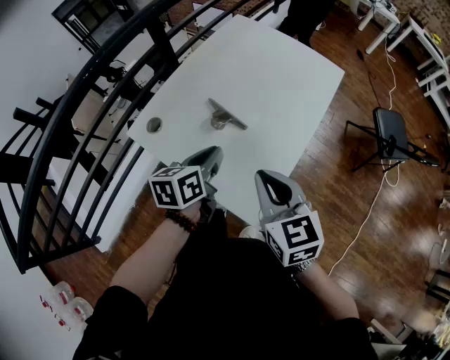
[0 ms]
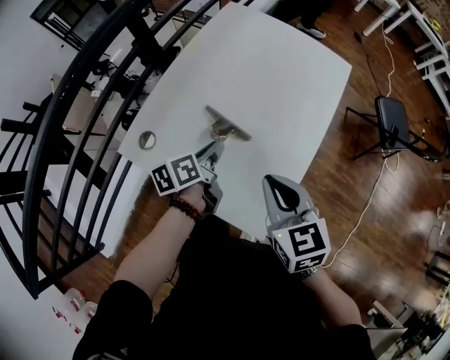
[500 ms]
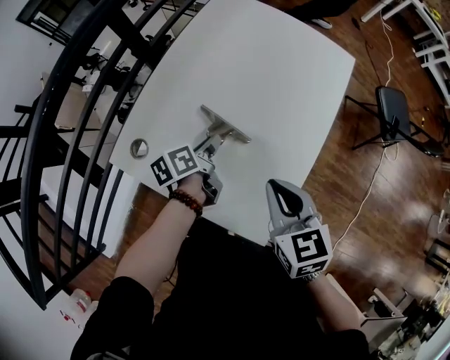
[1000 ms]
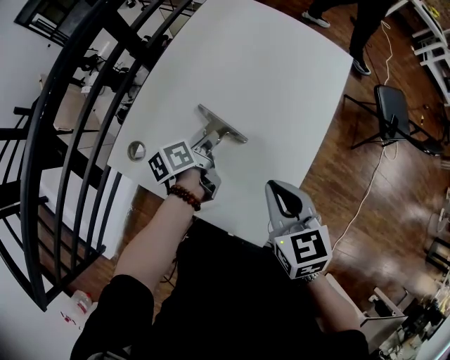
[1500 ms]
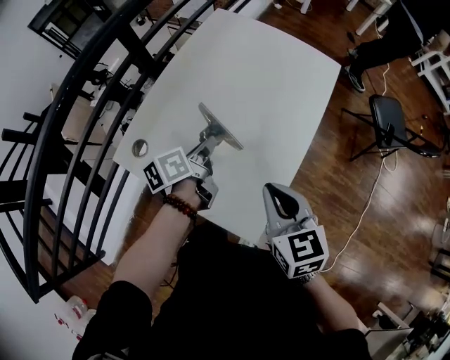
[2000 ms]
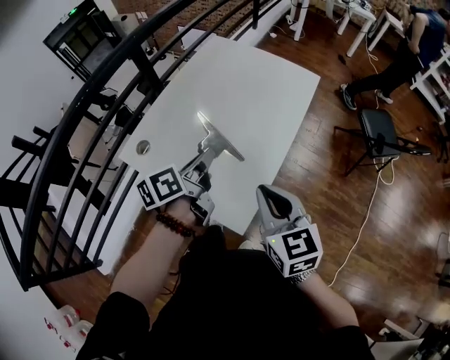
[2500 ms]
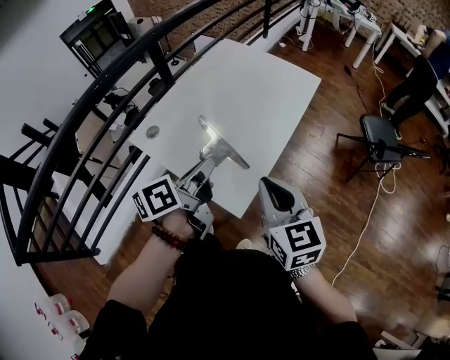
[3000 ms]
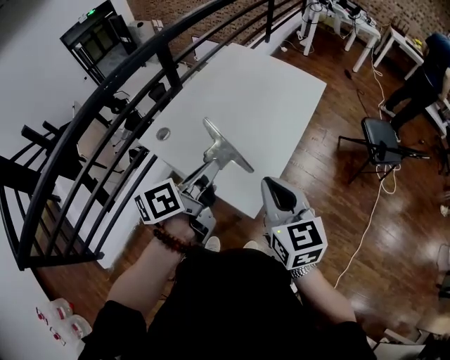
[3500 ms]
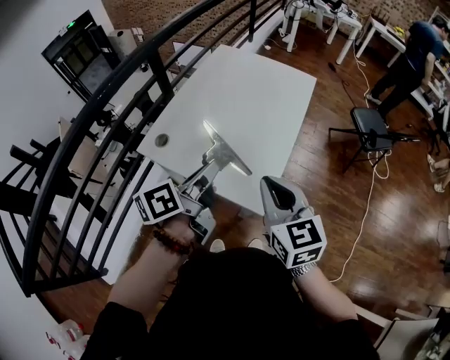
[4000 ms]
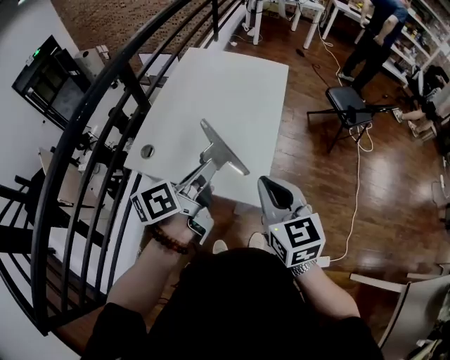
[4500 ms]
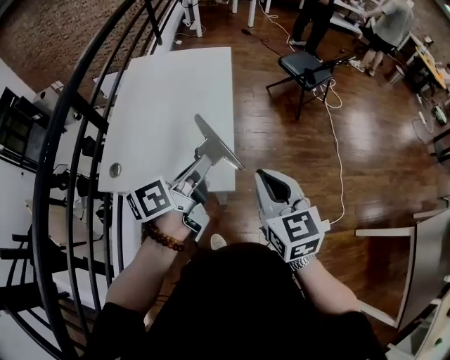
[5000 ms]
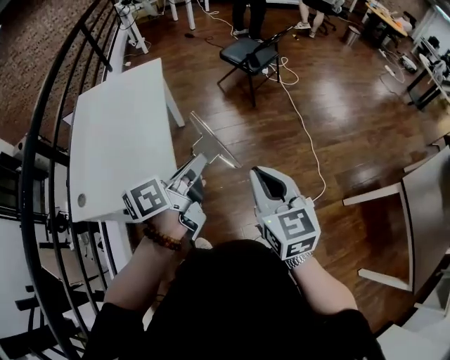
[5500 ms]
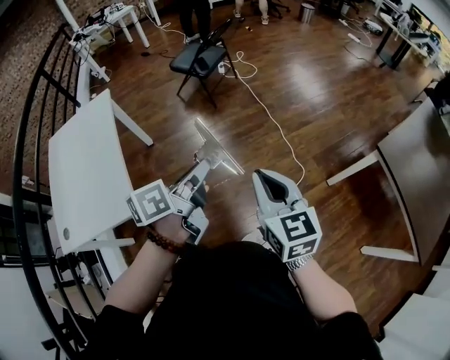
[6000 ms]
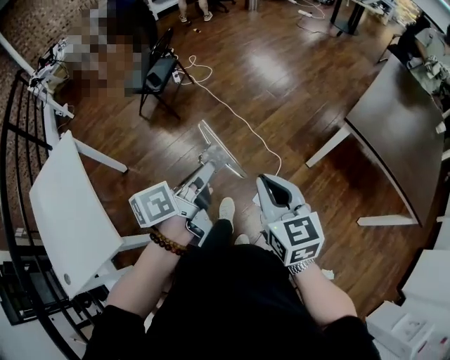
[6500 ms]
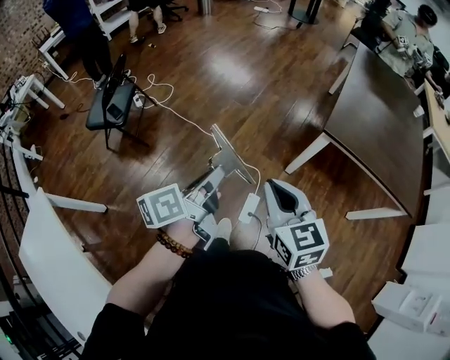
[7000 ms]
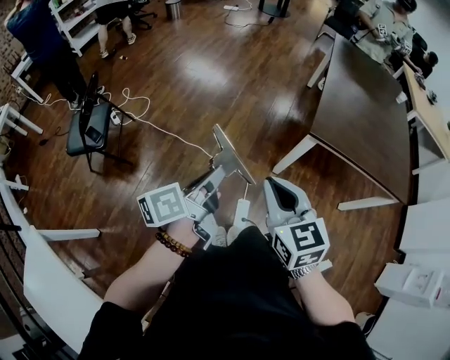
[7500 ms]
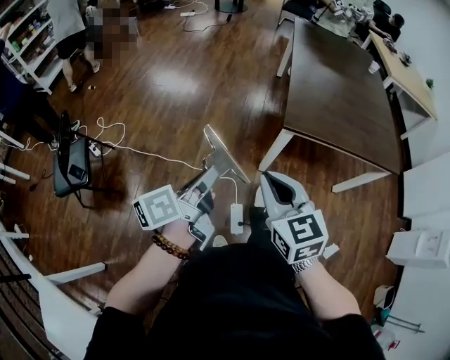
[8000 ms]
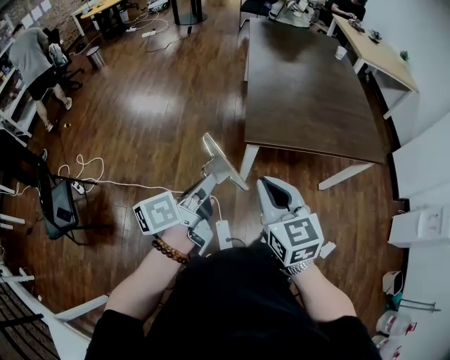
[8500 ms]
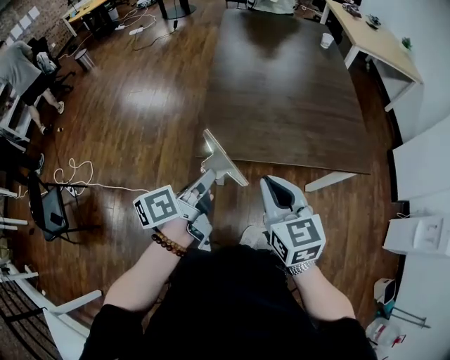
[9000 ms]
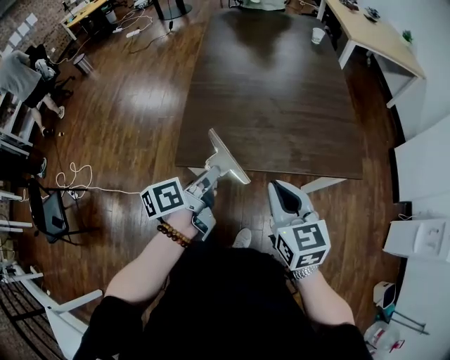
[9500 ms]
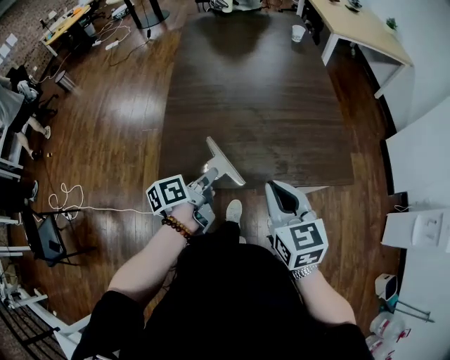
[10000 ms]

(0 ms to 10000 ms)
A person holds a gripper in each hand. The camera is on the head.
0 ms - 2000 ms: The right gripper moves forward, approximately 5 cm. Meanwhile the left gripper shifts some 10 cm forward, and changes its angle by some 30 degrees.
2000 ms - 4000 ms: The left gripper heads backward and upward, covering approximately 25 cm, and swivels roughly 20 degrees; the right gripper moves backward and upward, about 15 cm.
4000 ms - 6000 ms: Both grippers are carried approximately 50 cm. The right gripper rotates roughly 50 degrees; the left gripper changes its angle by about 50 degrees.
6000 ms - 8000 ms: The right gripper changes place by about 35 cm, and swivels about 50 degrees. The left gripper moves roughly 40 cm, and changes its angle by approximately 50 degrees.
8000 ms - 10000 ms: Both grippers are carried to the right and forward, roughly 60 cm. The left gripper changes its angle by approximately 20 degrees; the right gripper swivels approximately 20 degrees.

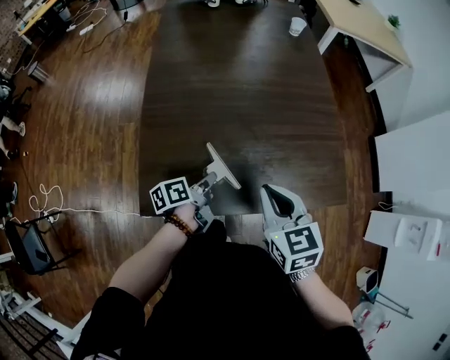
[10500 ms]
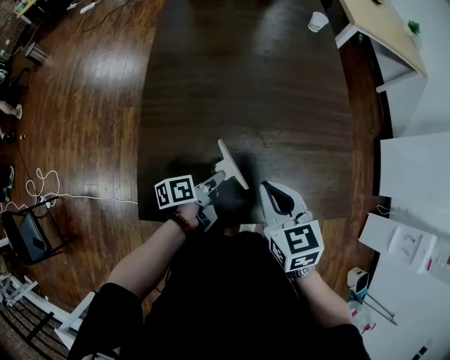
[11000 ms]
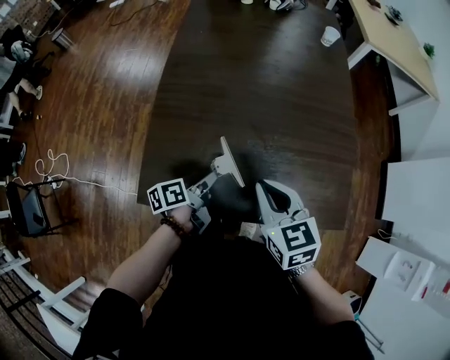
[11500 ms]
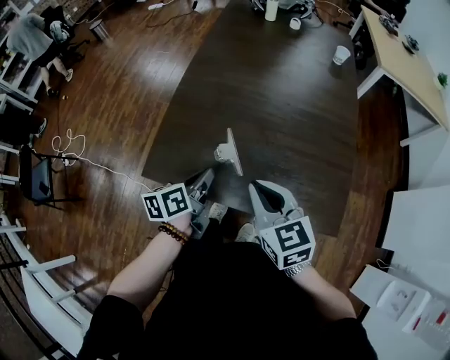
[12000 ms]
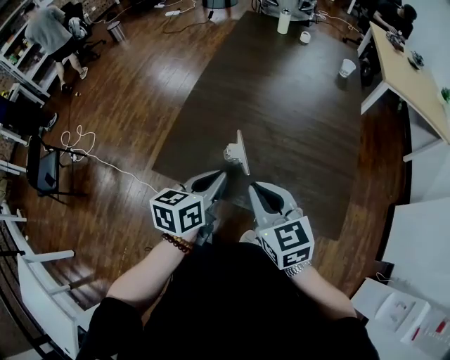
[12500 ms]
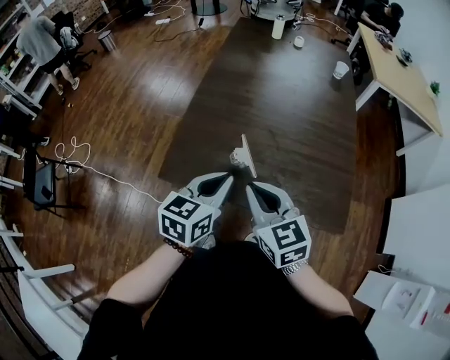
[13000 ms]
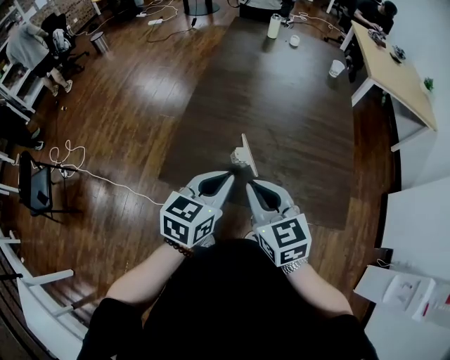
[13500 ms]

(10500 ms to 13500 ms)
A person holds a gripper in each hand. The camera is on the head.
10500 ms - 12000 ms: The right gripper changes its angle by approximately 30 degrees; the left gripper goes about 10 cm upward, and changes its angle by approximately 30 degrees.
12000 ms - 13500 ms: The right gripper travels to the left by about 10 cm. The left gripper is displaced upward and backward by some 10 cm, and twists approximately 40 degrees clockwise, seen from behind.

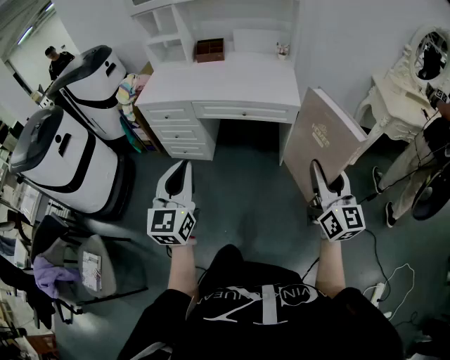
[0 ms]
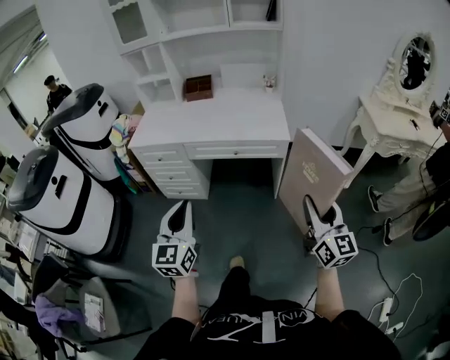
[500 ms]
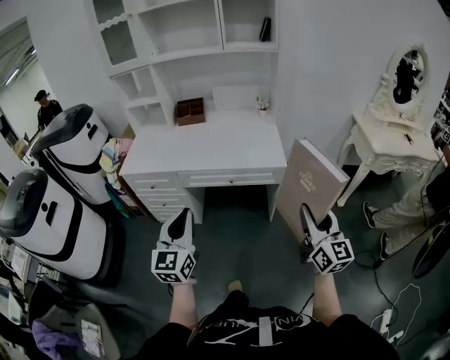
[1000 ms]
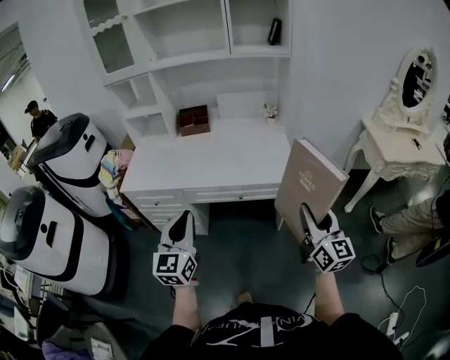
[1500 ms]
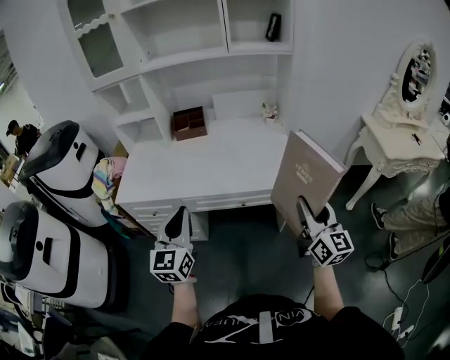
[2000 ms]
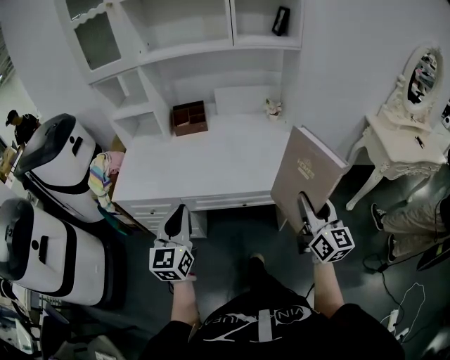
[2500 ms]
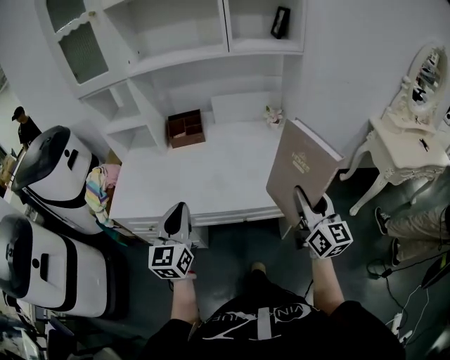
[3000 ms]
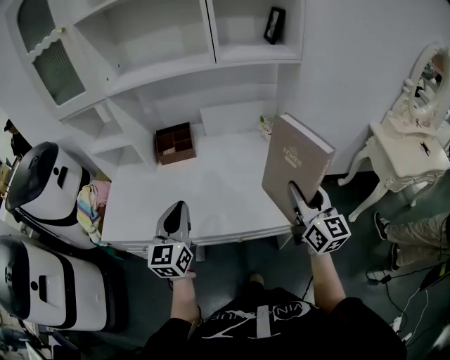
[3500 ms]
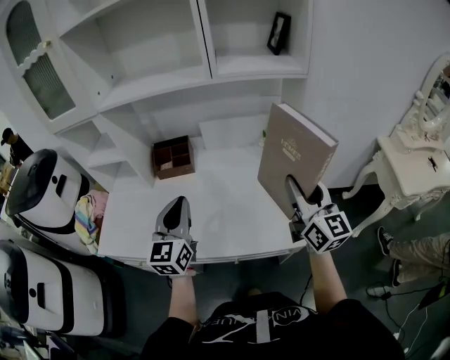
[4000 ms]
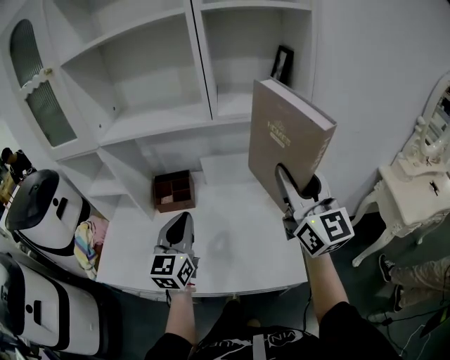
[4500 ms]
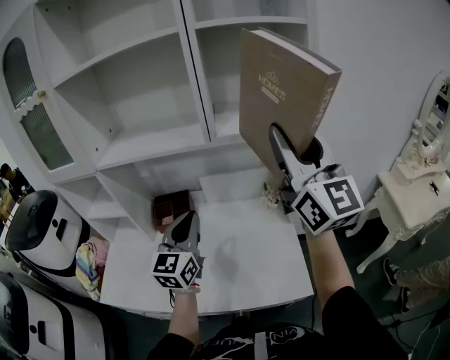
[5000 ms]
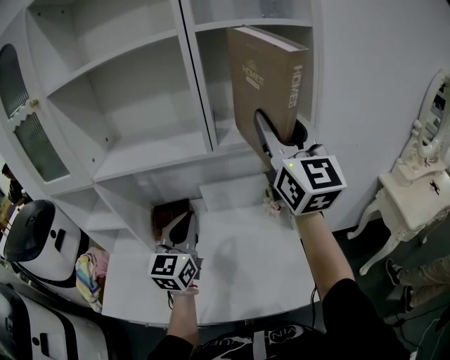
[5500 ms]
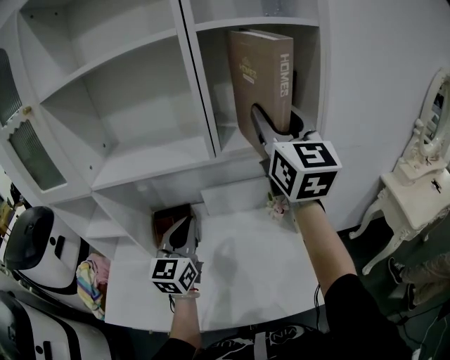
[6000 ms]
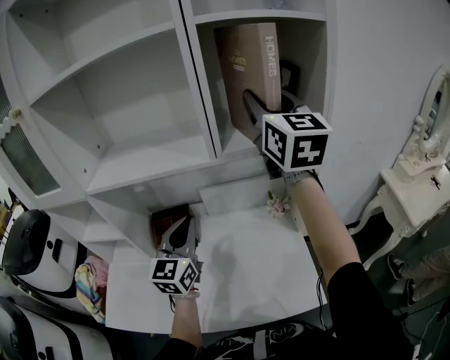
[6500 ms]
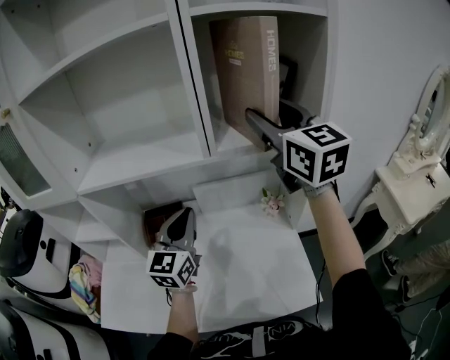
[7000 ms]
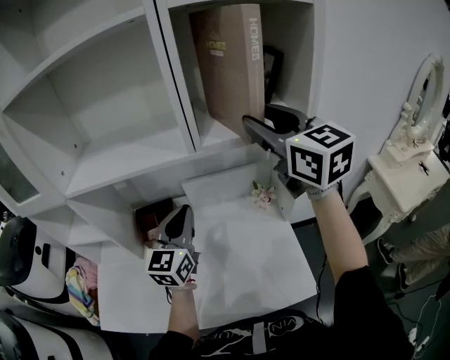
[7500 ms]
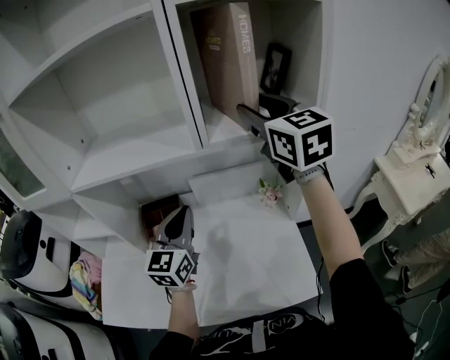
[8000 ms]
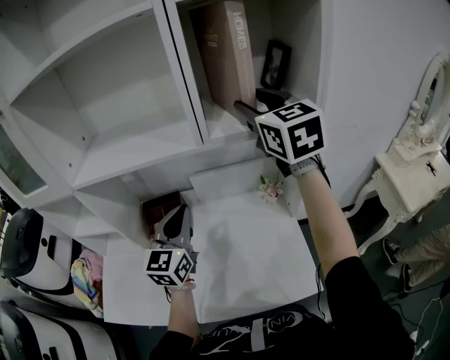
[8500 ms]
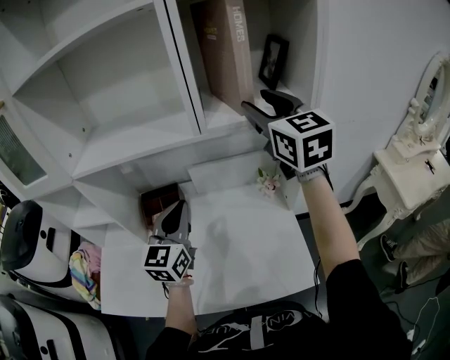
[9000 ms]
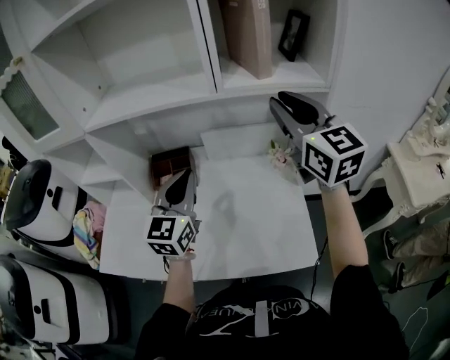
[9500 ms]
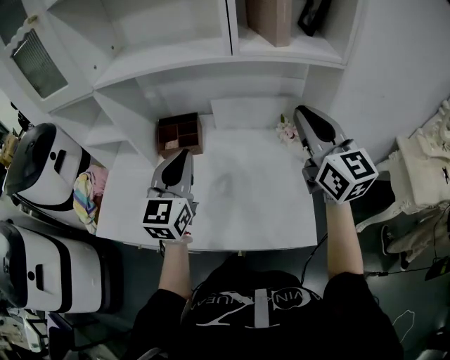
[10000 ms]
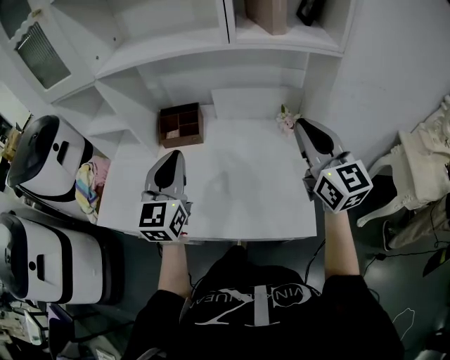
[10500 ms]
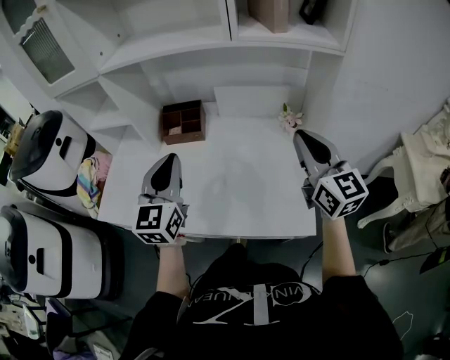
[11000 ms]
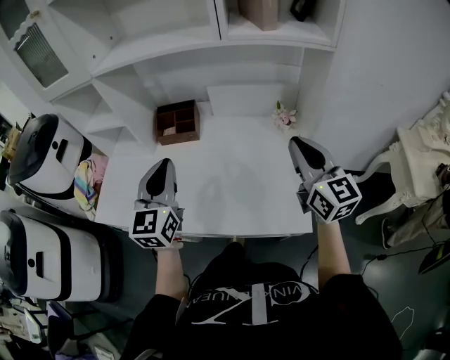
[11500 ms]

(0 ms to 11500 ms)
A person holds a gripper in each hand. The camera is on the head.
0 ms - 2000 ms: The two grippers go approximately 35 cm forward.
2000 ms - 4000 ms: The grippers both shift forward by some 35 cm.
4000 ms - 6000 ms: The left gripper is displaced forward and upward by some 20 cm. Meanwhile the right gripper travels upward and forward by approximately 35 cm, and rotates about 20 degrees.
6000 ms - 7500 ms: The right gripper heads downward, covering some 5 cm, and changes its angle by some 20 degrees; the left gripper moves roughly 5 cm.
7500 ms - 9500 ms: The right gripper heads downward and backward, covering roughly 10 cm, and closes; the left gripper travels backward by roughly 10 cm.
9500 ms - 11500 ms: The right gripper moves downward and backward, about 20 cm. The left gripper shifts some 10 cm backward and to the left.

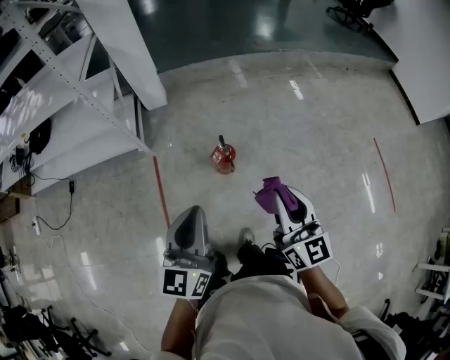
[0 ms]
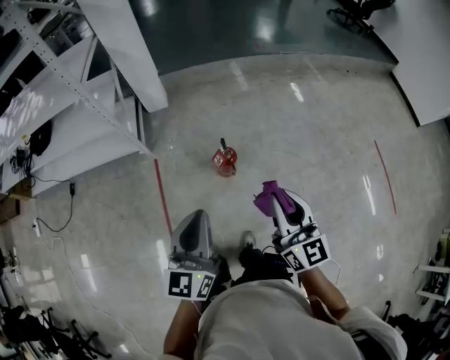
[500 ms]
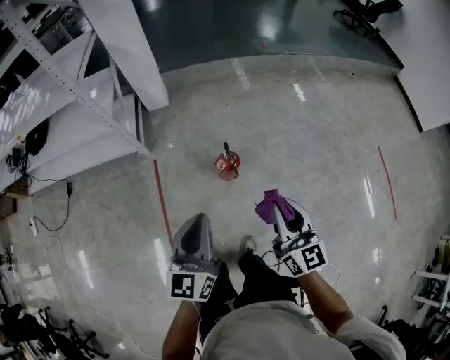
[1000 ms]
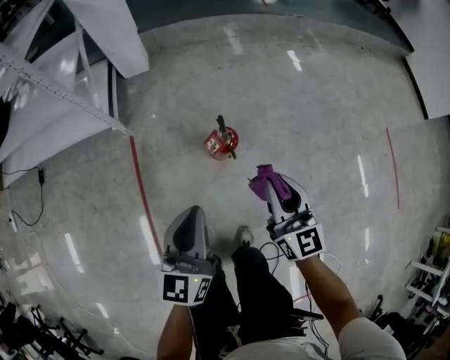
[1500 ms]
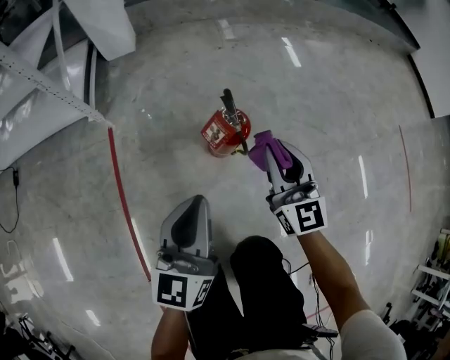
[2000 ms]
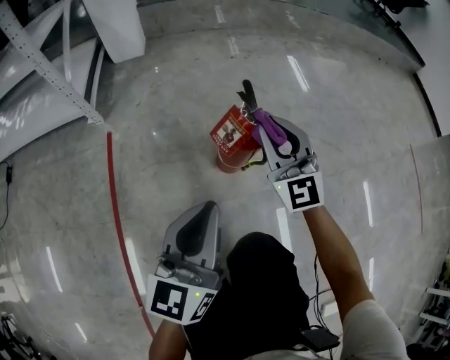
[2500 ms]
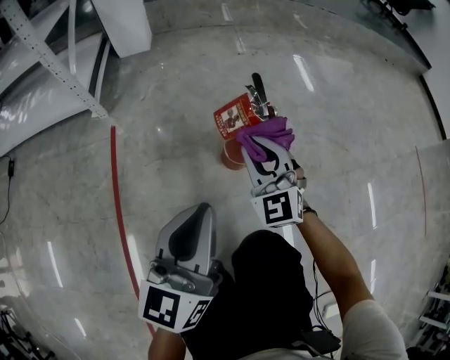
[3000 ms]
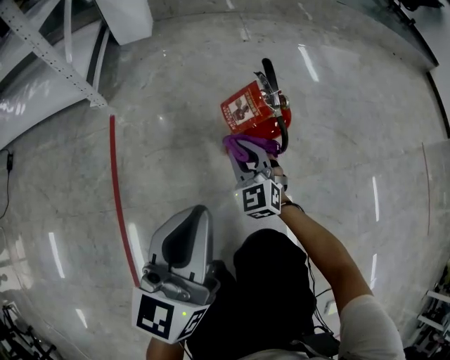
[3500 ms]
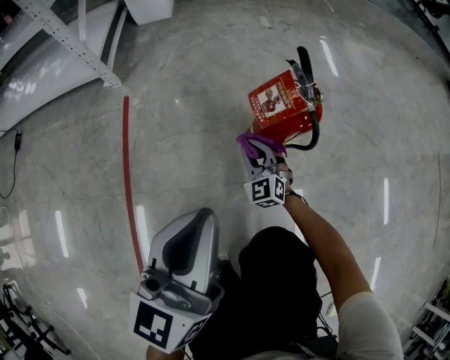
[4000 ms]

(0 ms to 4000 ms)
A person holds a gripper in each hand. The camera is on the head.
0 ms - 2000 ms: The left gripper goes about 50 cm downward. Meanwhile the right gripper moves downward and forward, about 60 cm.
2000 ms - 4000 ms: The right gripper heads downward, covering roughly 40 cm, and swivels roughly 40 degrees. The left gripper goes some 15 cm downward and to the left.
